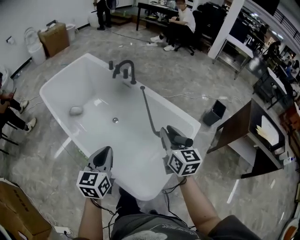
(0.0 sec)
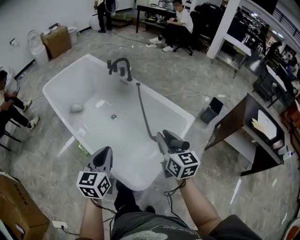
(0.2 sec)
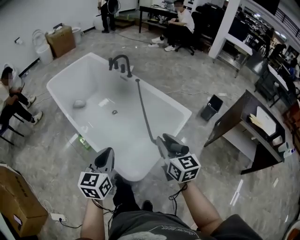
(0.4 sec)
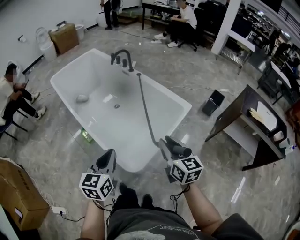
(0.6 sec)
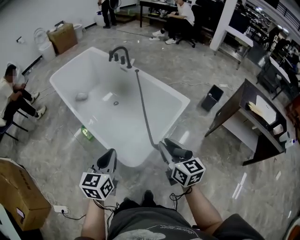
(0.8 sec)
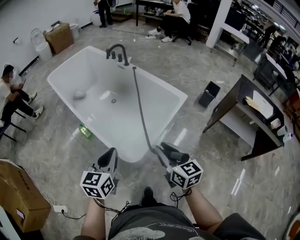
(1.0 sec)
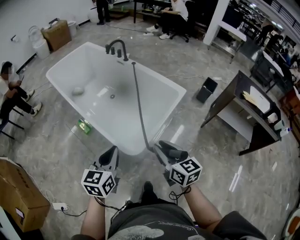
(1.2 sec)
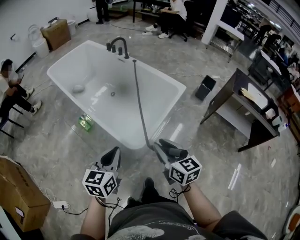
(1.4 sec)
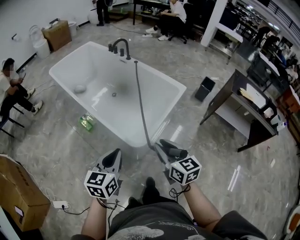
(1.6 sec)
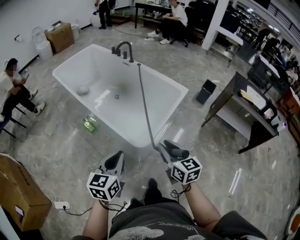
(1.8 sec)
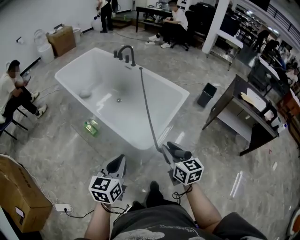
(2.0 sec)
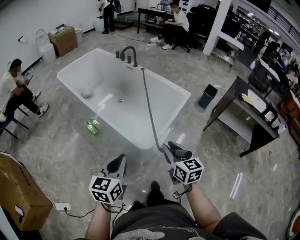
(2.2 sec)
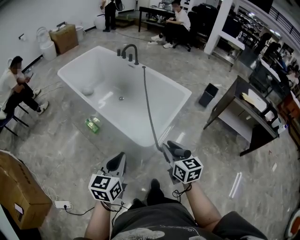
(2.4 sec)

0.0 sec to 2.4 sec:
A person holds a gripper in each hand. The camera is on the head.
0.0 sec to 1.2 sec: The grippers both shift backward by roughly 35 cm.
1.2 sec to 2.4 sec: Both grippers travel together backward and to the left, roughly 15 cm.

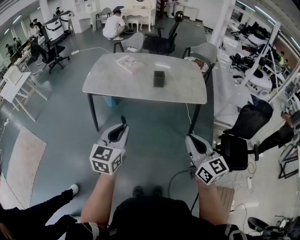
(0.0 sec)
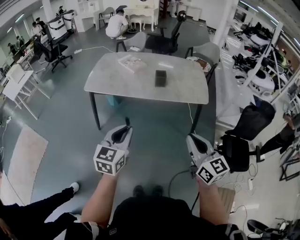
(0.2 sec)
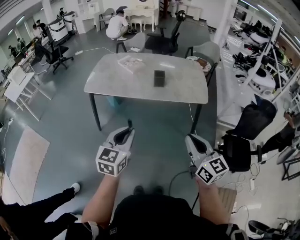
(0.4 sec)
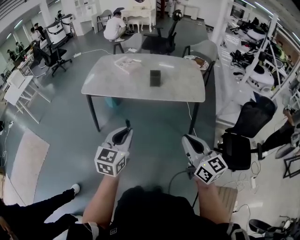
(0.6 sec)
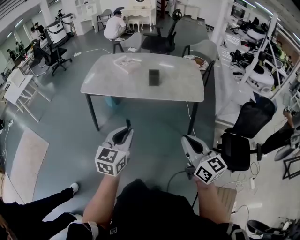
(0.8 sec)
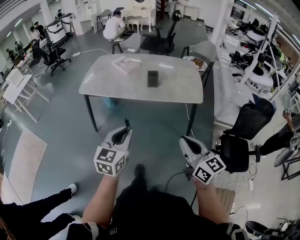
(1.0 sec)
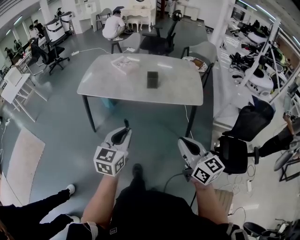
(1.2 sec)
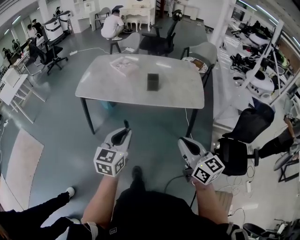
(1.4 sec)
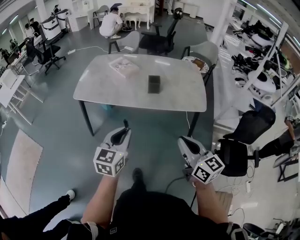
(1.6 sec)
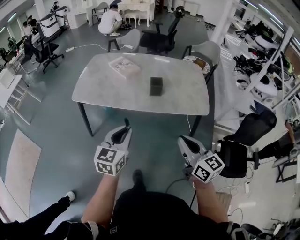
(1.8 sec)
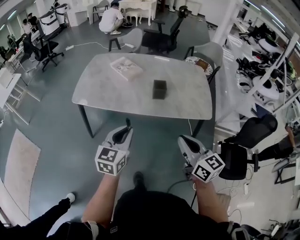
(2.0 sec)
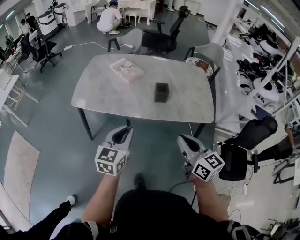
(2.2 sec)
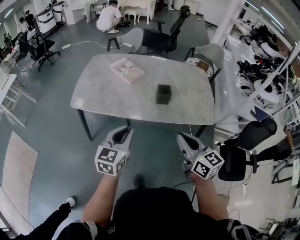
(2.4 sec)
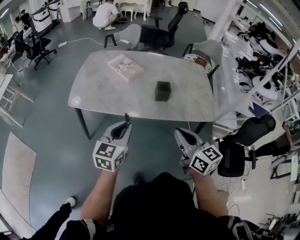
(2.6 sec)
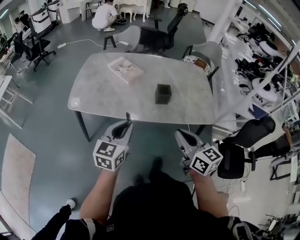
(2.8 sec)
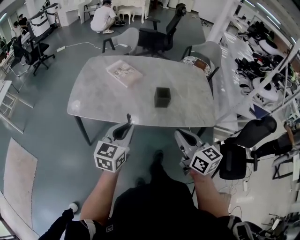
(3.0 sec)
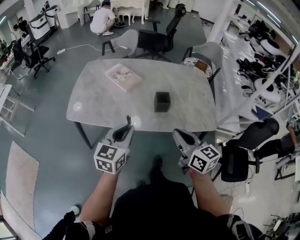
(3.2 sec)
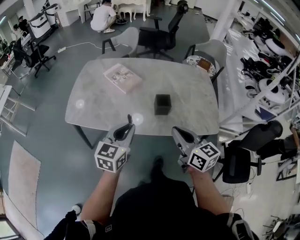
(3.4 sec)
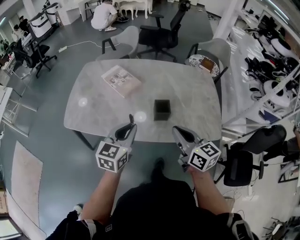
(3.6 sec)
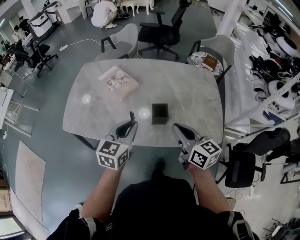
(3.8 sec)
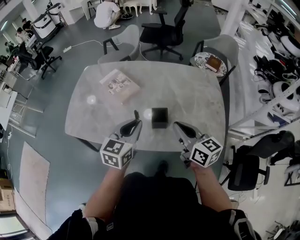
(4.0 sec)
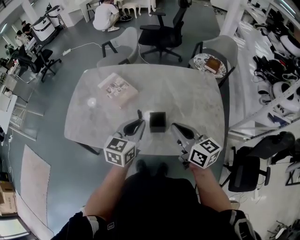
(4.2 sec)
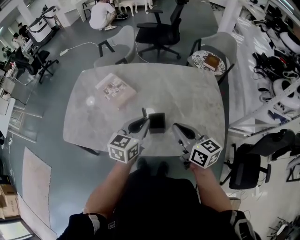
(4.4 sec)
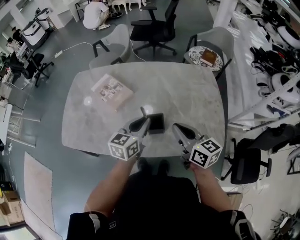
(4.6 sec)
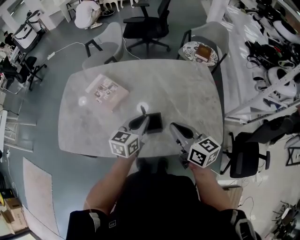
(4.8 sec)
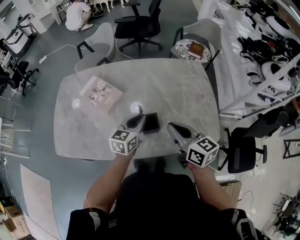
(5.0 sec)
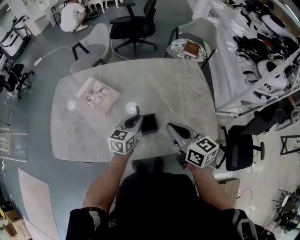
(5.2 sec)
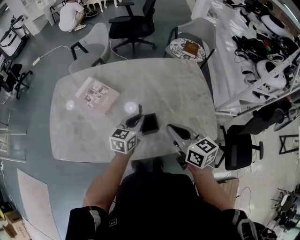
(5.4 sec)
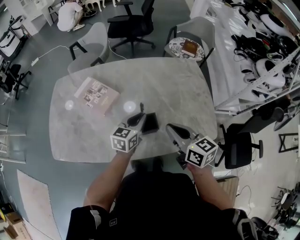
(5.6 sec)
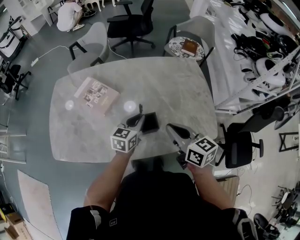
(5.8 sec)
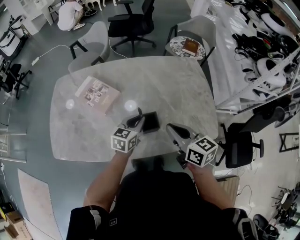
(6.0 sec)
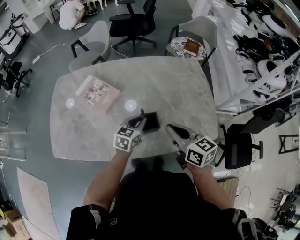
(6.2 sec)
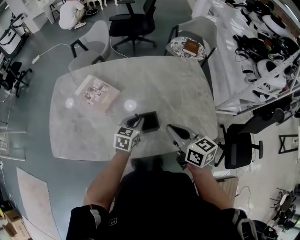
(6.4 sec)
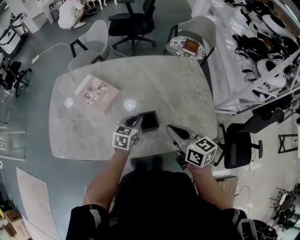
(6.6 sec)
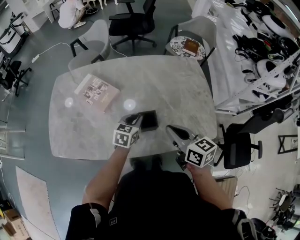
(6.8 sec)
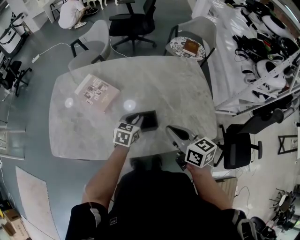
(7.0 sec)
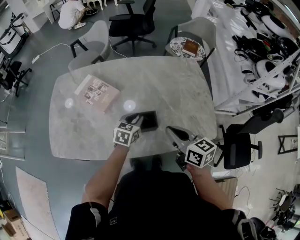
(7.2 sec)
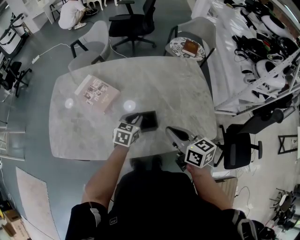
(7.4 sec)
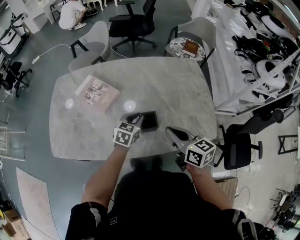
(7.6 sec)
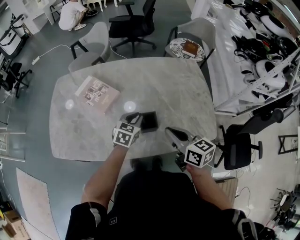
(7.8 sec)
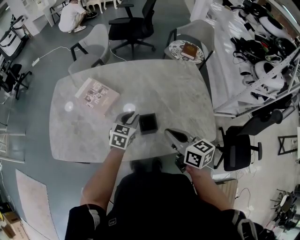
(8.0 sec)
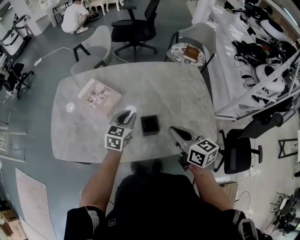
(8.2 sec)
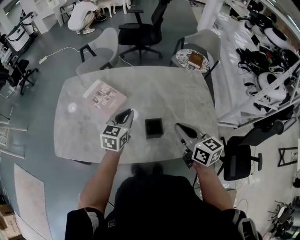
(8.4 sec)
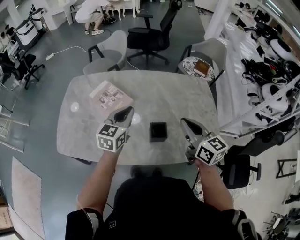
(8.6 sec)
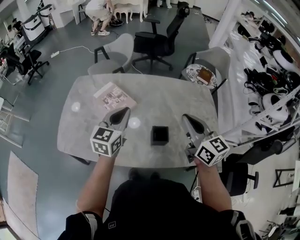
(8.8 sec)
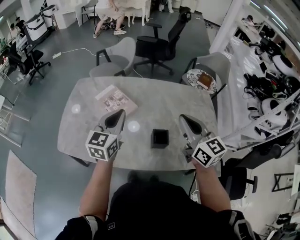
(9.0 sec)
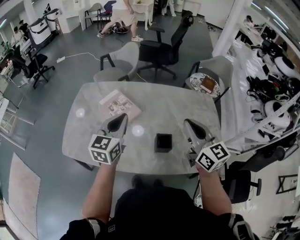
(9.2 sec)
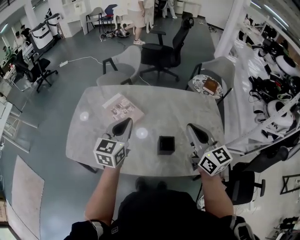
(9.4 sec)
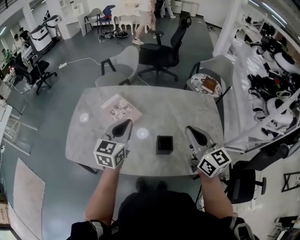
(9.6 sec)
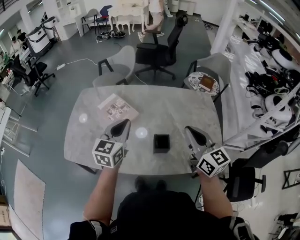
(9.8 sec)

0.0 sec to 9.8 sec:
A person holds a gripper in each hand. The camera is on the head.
0.0 sec to 1.4 sec: The right gripper travels forward by some 5 cm. The left gripper goes some 10 cm to the right and forward.
1.4 sec to 2.8 sec: The left gripper goes approximately 25 cm forward. The right gripper goes some 30 cm forward and to the left.
2.8 sec to 4.2 sec: Both grippers move forward and to the right, about 35 cm.
4.2 sec to 5.6 sec: The right gripper moves roughly 5 cm. The left gripper is displaced forward and downward by about 15 cm.
5.6 sec to 7.0 sec: The left gripper moves downward, some 5 cm.
7.0 sec to 8.4 sec: The left gripper moves upward and to the left, about 15 cm.
8.4 sec to 9.8 sec: The right gripper travels upward by some 10 cm. The left gripper goes approximately 15 cm upward and to the left.

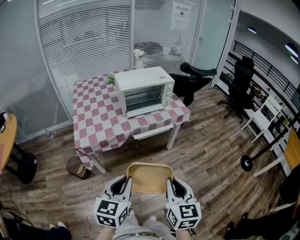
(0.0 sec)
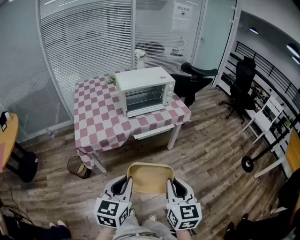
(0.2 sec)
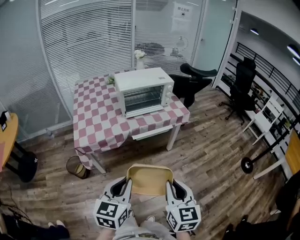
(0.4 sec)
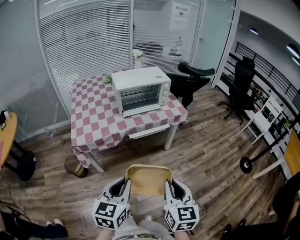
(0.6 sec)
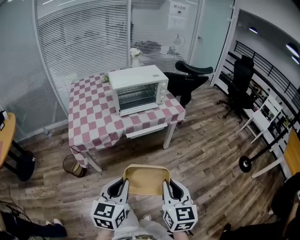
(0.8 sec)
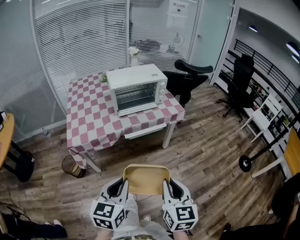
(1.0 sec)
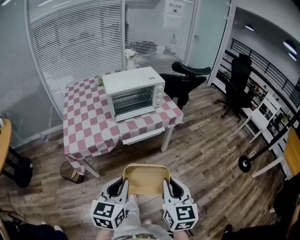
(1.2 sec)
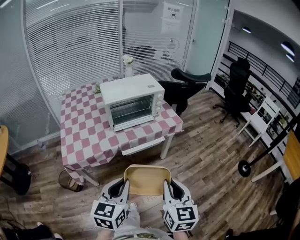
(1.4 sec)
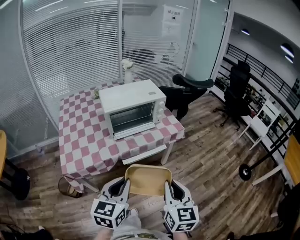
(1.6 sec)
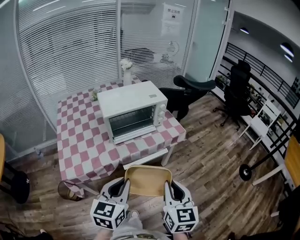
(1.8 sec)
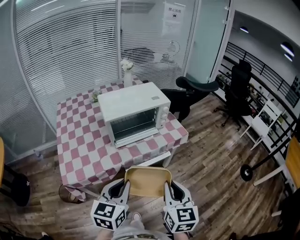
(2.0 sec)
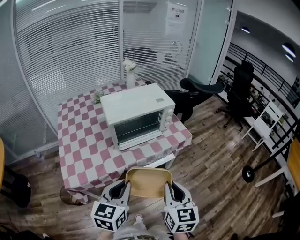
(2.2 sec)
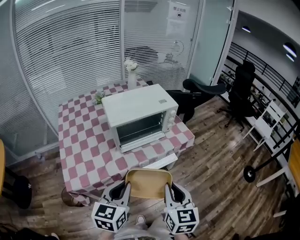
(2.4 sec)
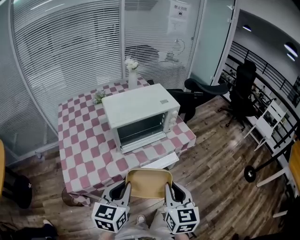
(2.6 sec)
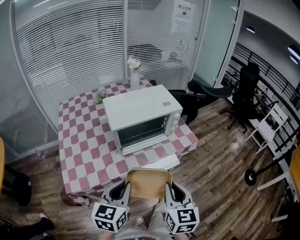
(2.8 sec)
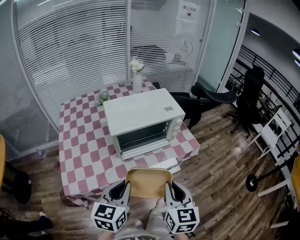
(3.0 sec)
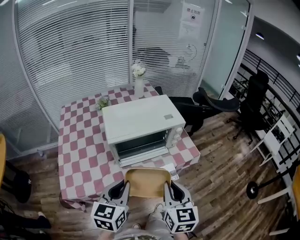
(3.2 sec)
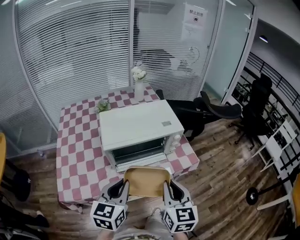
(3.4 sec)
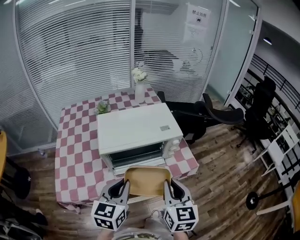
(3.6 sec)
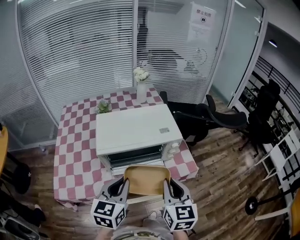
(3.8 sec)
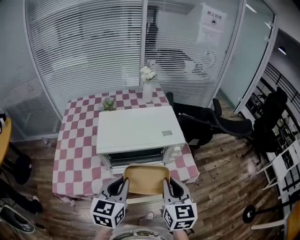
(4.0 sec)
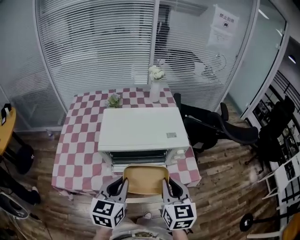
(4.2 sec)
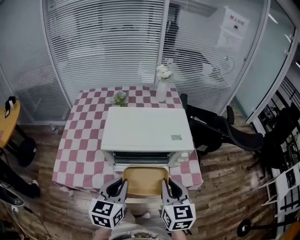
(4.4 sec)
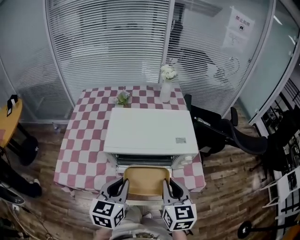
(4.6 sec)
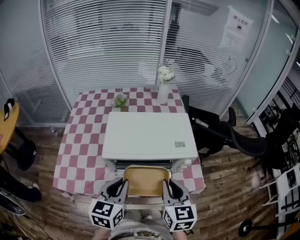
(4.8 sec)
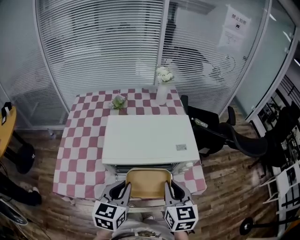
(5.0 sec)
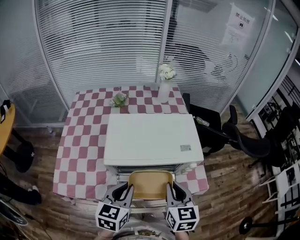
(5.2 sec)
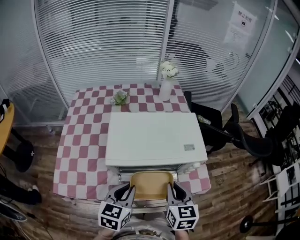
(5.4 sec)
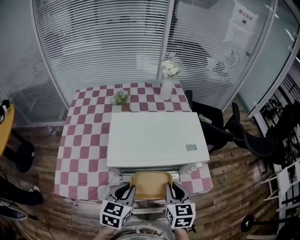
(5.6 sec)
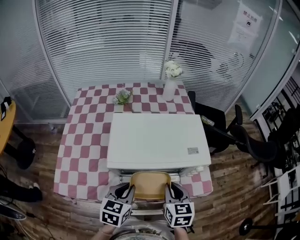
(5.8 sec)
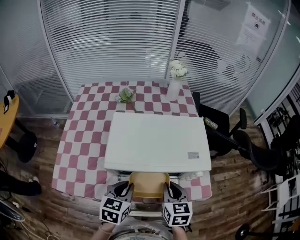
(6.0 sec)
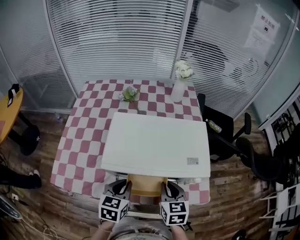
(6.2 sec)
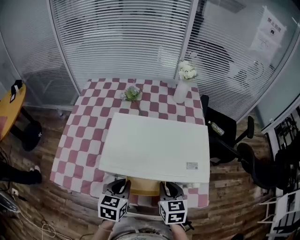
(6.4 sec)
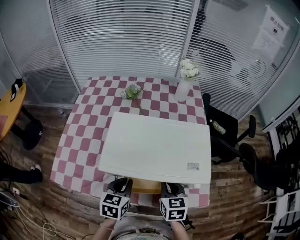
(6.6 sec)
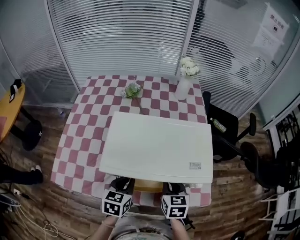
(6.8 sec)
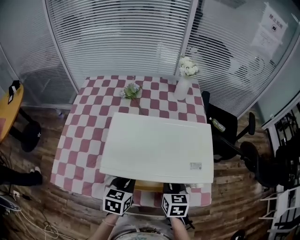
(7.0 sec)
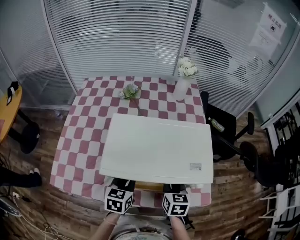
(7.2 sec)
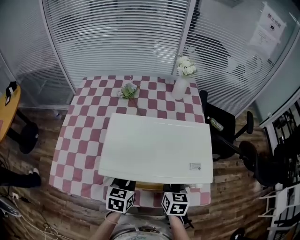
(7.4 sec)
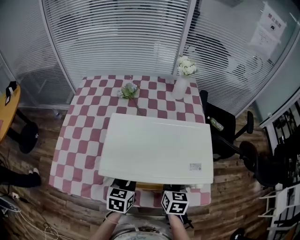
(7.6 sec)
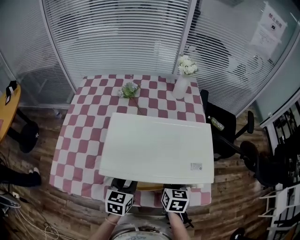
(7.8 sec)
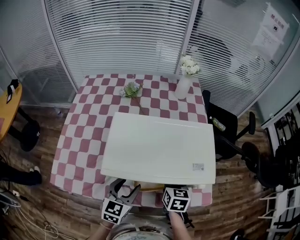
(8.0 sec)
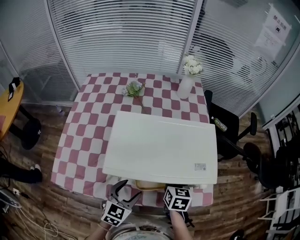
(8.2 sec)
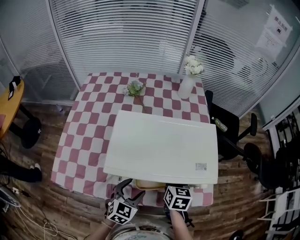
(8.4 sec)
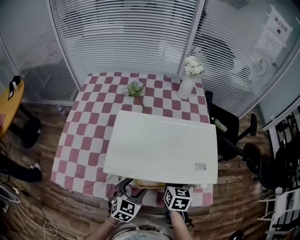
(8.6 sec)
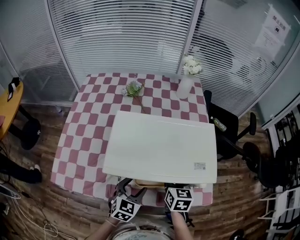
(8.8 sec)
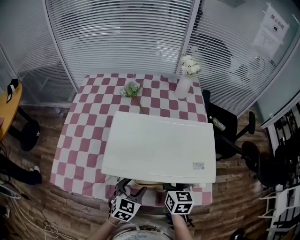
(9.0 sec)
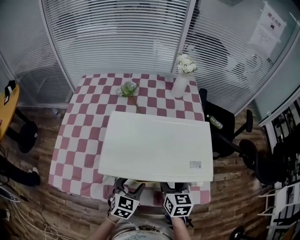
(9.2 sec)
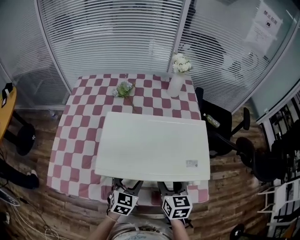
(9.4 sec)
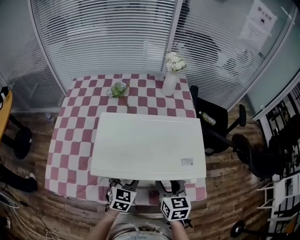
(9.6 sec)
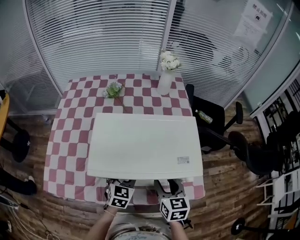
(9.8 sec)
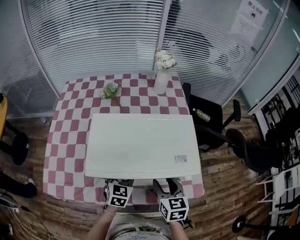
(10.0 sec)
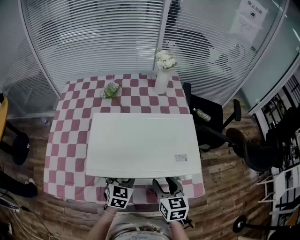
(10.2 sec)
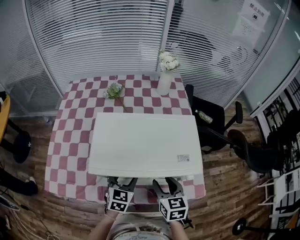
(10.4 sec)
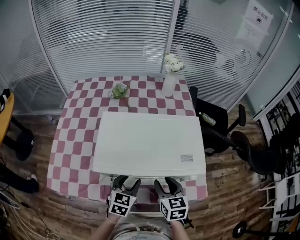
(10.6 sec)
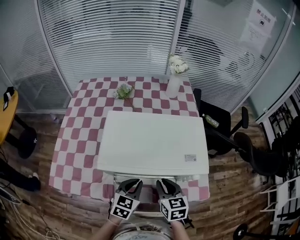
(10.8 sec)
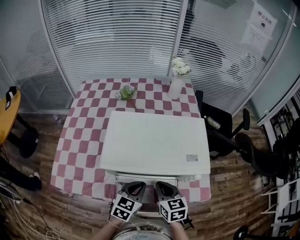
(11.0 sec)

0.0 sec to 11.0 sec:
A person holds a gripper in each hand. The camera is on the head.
0.0 sec to 1.6 sec: The two grippers go some 15 cm forward.
1.6 sec to 3.2 sec: Both grippers travel together forward, approximately 20 cm.
3.2 sec to 4.8 sec: Both grippers move forward, some 15 cm.
4.8 sec to 6.2 sec: Both grippers move downward and forward, approximately 15 cm.
6.2 sec to 7.8 sec: The right gripper goes roughly 5 cm forward. Meanwhile the left gripper ends up approximately 5 cm from where it was.
7.8 sec to 9.4 sec: The left gripper opens. Meanwhile the right gripper opens.
9.4 sec to 11.0 sec: Both grippers move backward, roughly 5 cm. The left gripper closes its fingers. Meanwhile the right gripper closes.
